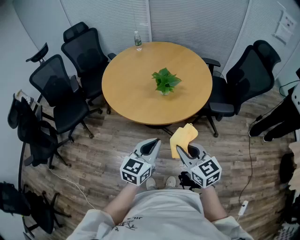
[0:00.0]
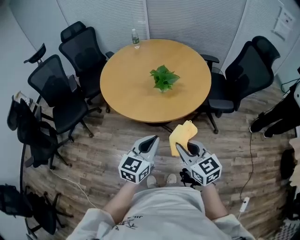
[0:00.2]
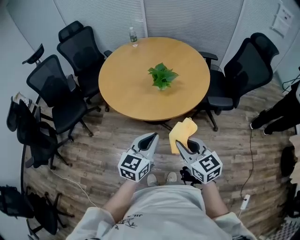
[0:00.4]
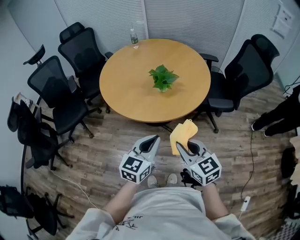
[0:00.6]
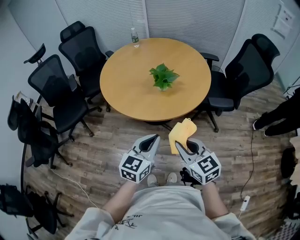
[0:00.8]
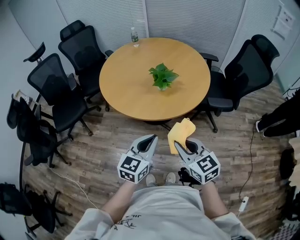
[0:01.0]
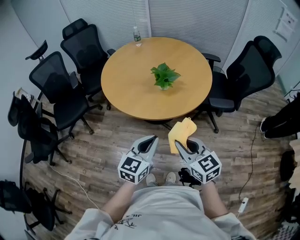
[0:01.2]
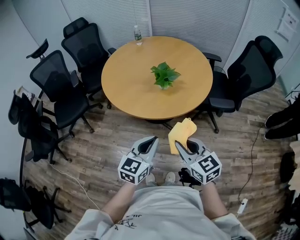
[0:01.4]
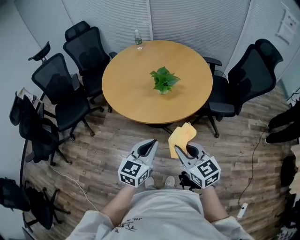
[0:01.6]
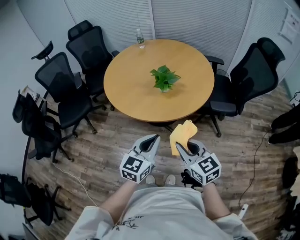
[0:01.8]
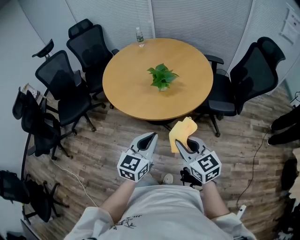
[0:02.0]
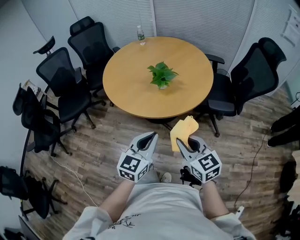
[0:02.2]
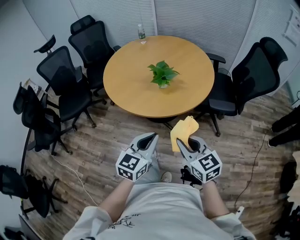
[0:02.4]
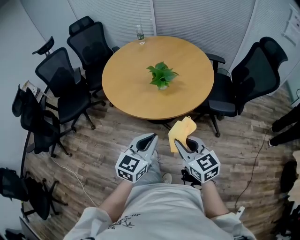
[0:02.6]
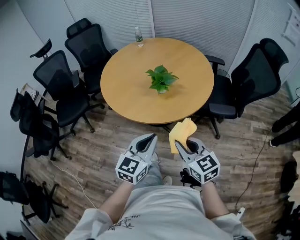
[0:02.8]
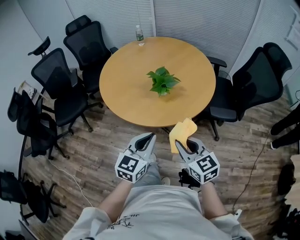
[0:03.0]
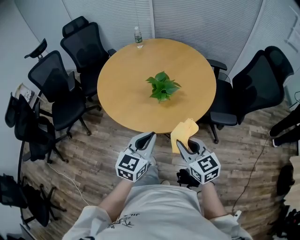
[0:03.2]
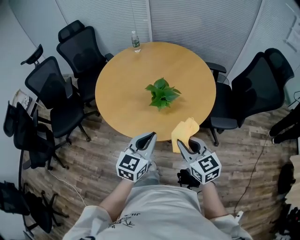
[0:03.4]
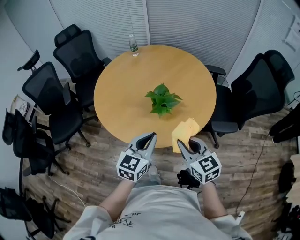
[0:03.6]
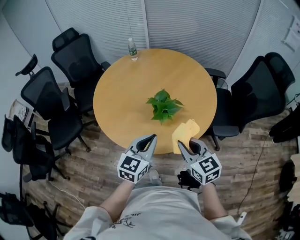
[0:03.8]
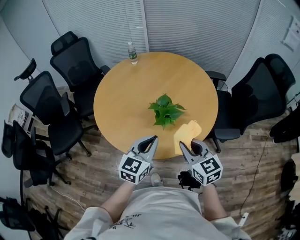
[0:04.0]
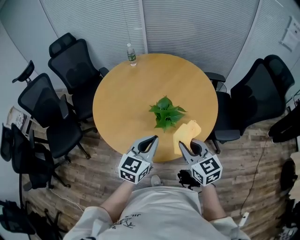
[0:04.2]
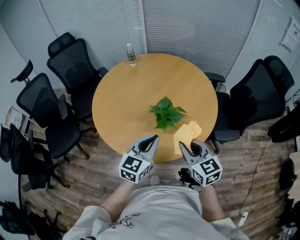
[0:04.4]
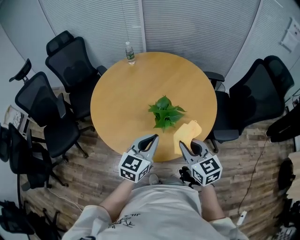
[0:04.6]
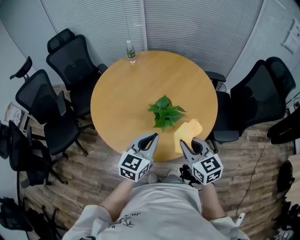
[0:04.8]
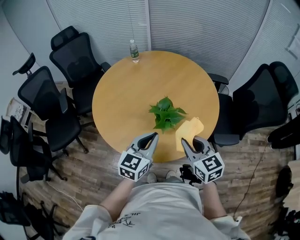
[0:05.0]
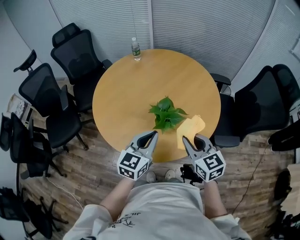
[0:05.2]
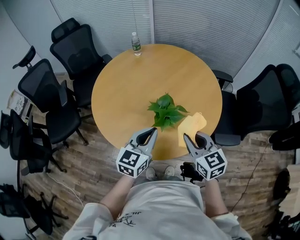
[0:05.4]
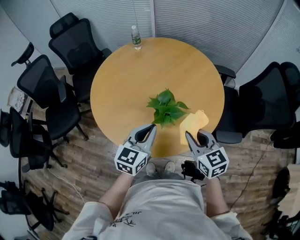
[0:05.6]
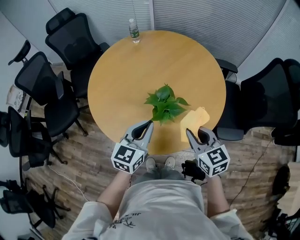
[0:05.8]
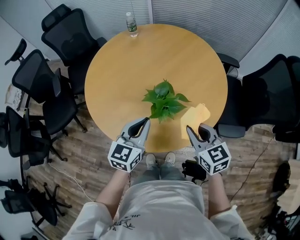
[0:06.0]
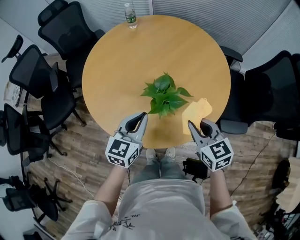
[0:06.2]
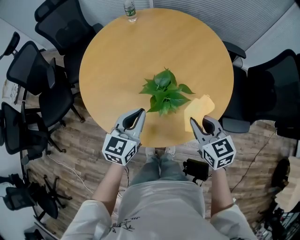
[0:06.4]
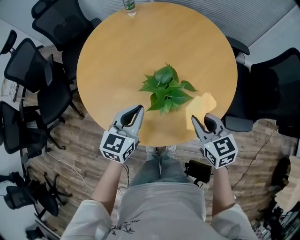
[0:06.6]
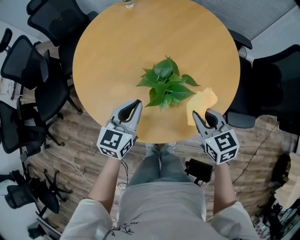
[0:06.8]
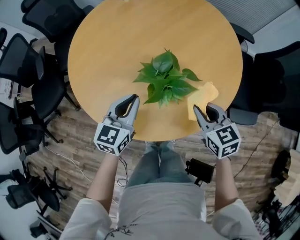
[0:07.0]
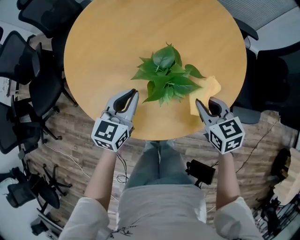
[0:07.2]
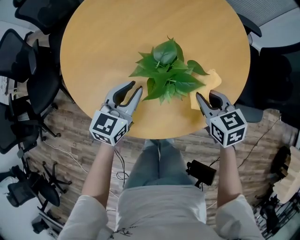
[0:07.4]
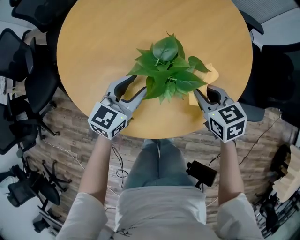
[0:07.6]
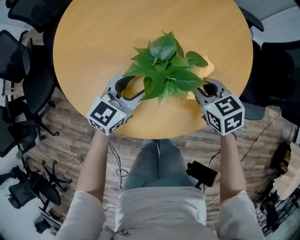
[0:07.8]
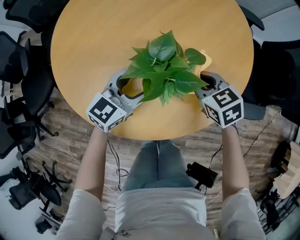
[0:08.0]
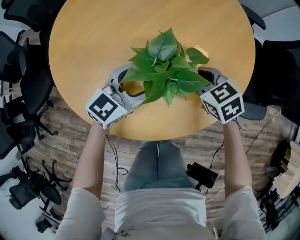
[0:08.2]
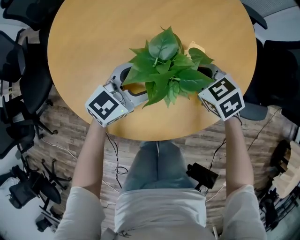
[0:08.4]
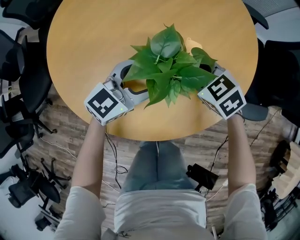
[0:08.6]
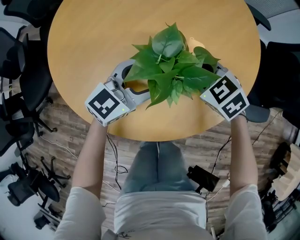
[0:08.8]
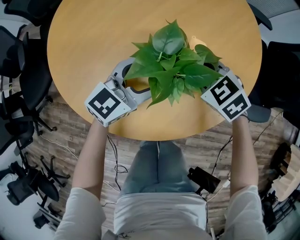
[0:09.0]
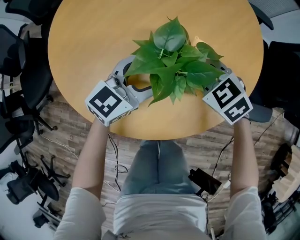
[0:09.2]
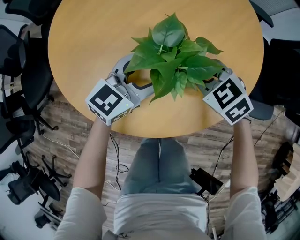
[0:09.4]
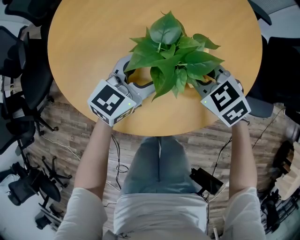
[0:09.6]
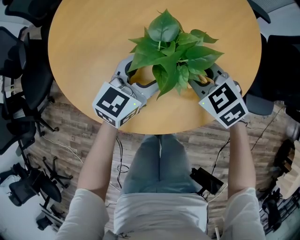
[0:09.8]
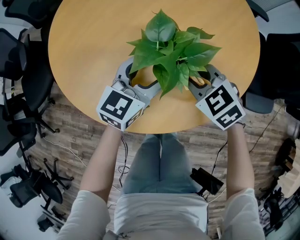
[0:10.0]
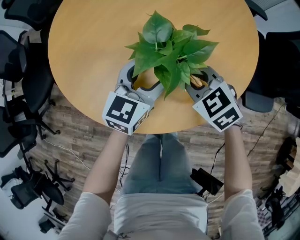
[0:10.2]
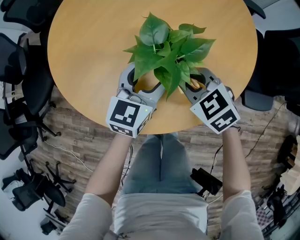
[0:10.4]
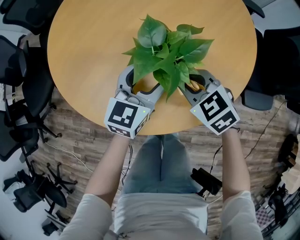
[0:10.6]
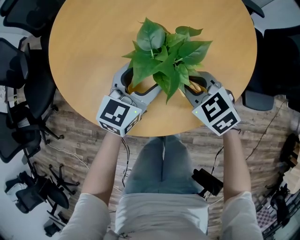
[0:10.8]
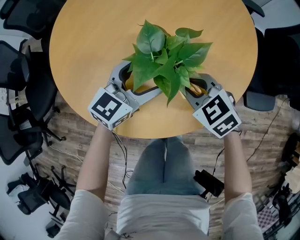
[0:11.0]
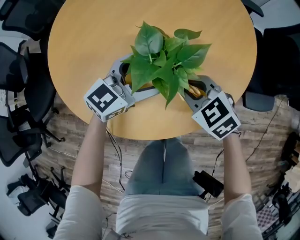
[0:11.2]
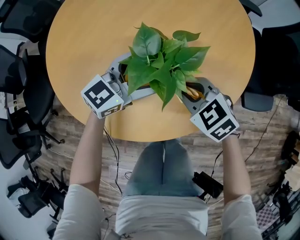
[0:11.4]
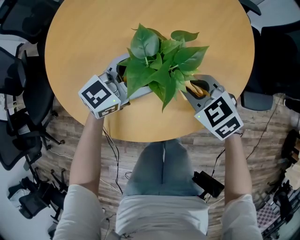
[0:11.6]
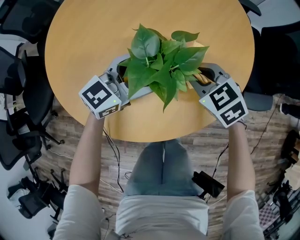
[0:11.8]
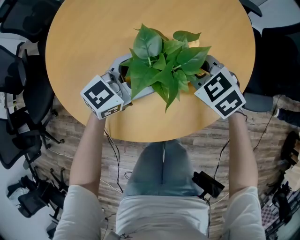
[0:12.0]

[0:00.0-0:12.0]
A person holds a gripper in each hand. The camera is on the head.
0:00.0 to 0:01.6: There are only small adjustments of the grippers.
0:01.6 to 0:03.0: The grippers both shift forward by roughly 5 cm.
0:03.0 to 0:04.4: The grippers both shift forward by about 20 cm.
0:04.4 to 0:06.0: The left gripper moves forward, roughly 5 cm; the right gripper moves forward and to the right, about 10 cm.
0:06.0 to 0:07.6: Both grippers move downward and forward, roughly 20 cm. The left gripper opens.
0:07.6 to 0:09.0: The right gripper shifts some 5 cm to the left, and rotates about 30 degrees. The left gripper ends up approximately 5 cm from where it was.
0:09.0 to 0:10.4: The right gripper goes approximately 5 cm backward, while the left gripper changes its angle by approximately 20 degrees.
0:10.4 to 0:12.0: The right gripper heads forward, covering some 5 cm. Meanwhile the left gripper changes its angle by roughly 30 degrees.

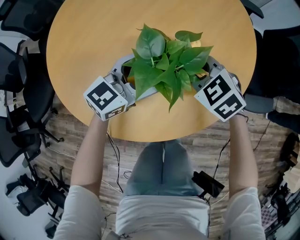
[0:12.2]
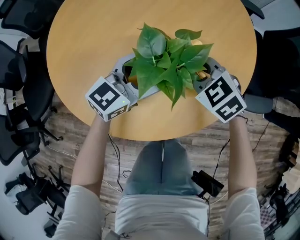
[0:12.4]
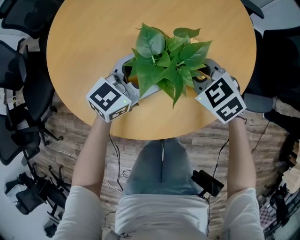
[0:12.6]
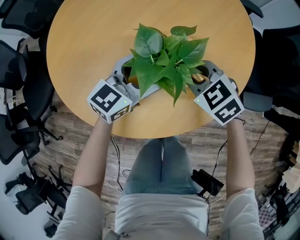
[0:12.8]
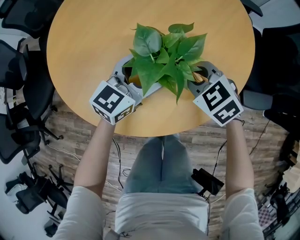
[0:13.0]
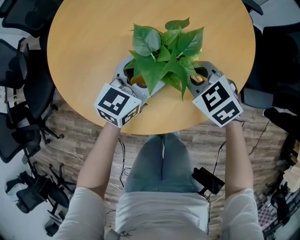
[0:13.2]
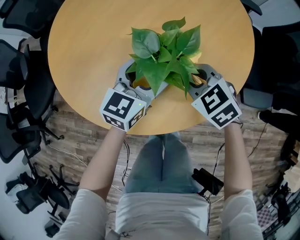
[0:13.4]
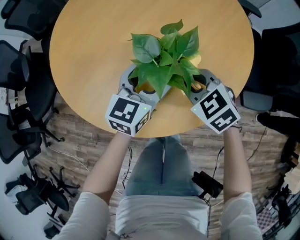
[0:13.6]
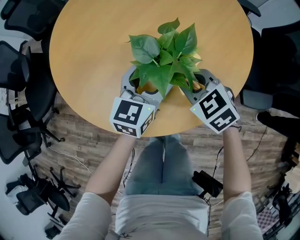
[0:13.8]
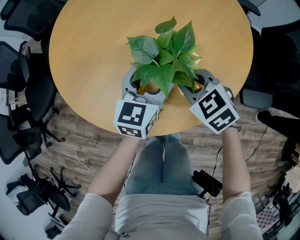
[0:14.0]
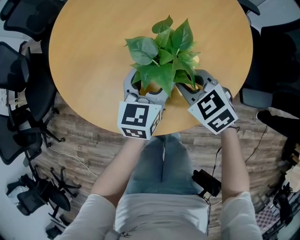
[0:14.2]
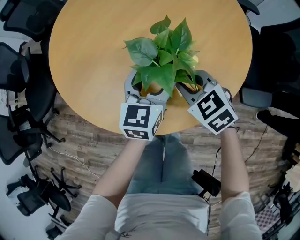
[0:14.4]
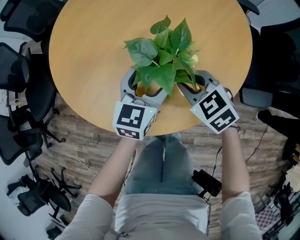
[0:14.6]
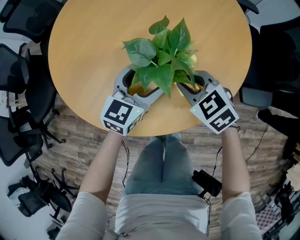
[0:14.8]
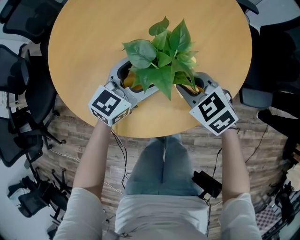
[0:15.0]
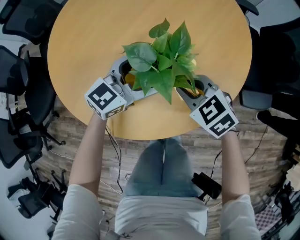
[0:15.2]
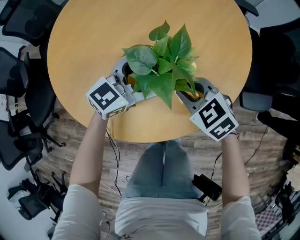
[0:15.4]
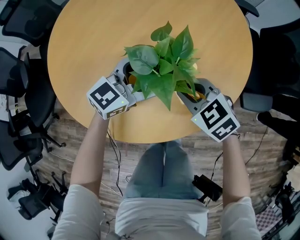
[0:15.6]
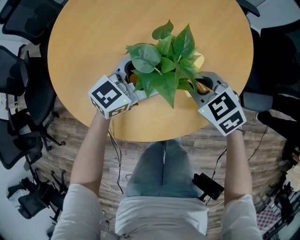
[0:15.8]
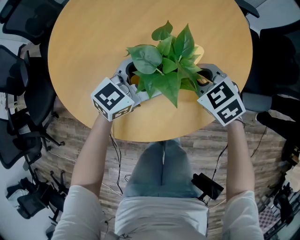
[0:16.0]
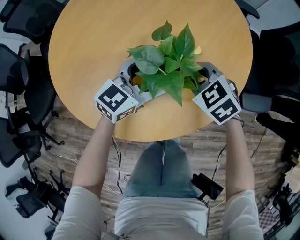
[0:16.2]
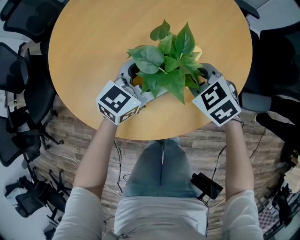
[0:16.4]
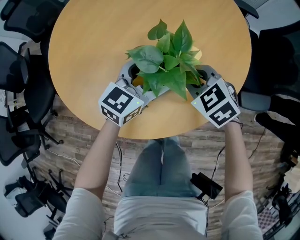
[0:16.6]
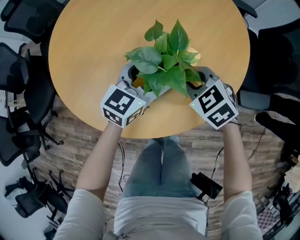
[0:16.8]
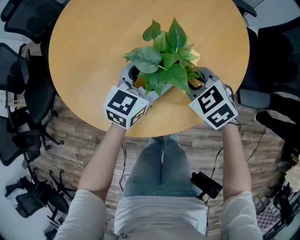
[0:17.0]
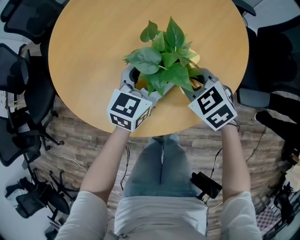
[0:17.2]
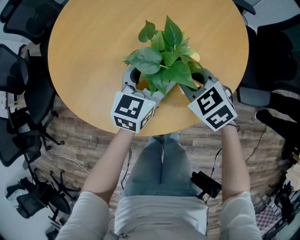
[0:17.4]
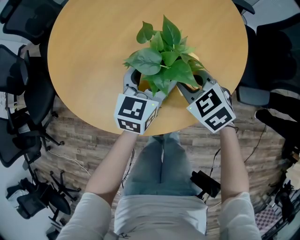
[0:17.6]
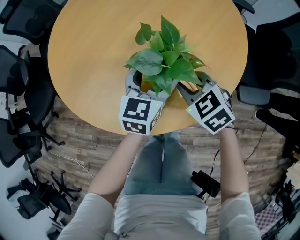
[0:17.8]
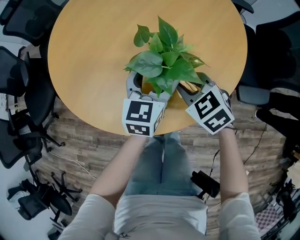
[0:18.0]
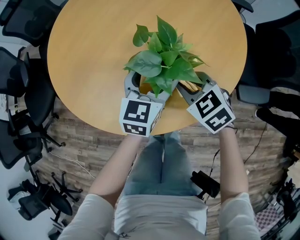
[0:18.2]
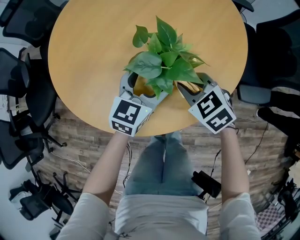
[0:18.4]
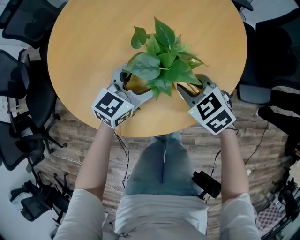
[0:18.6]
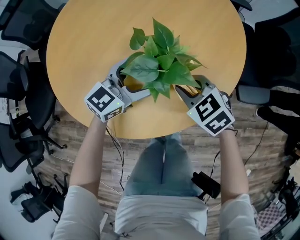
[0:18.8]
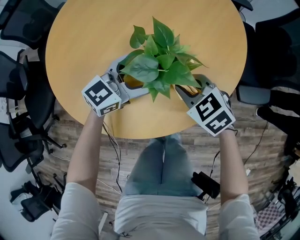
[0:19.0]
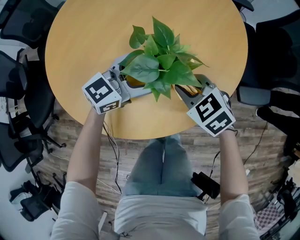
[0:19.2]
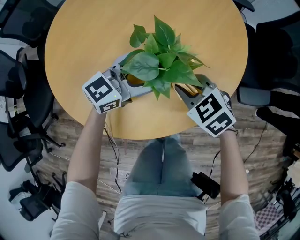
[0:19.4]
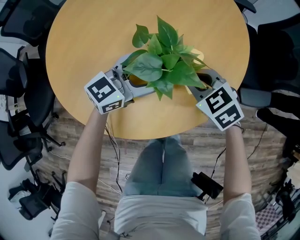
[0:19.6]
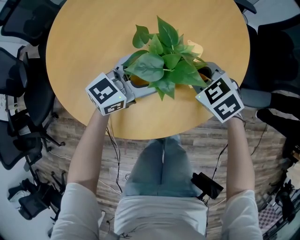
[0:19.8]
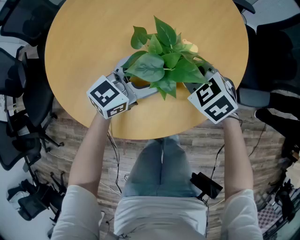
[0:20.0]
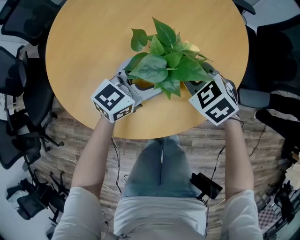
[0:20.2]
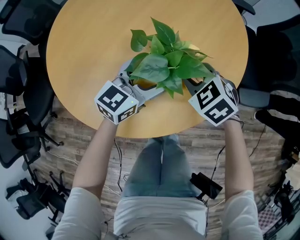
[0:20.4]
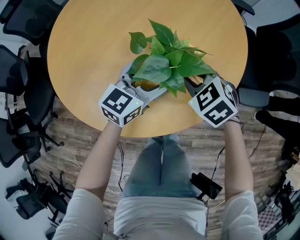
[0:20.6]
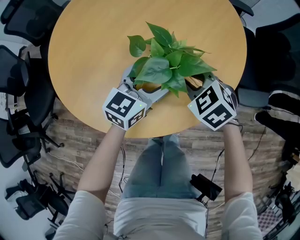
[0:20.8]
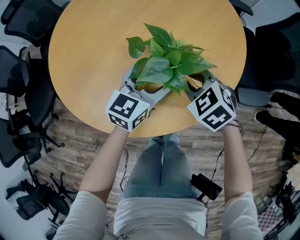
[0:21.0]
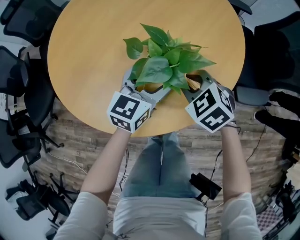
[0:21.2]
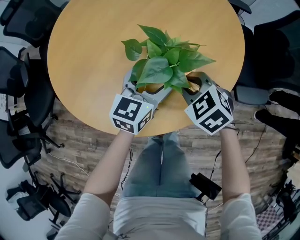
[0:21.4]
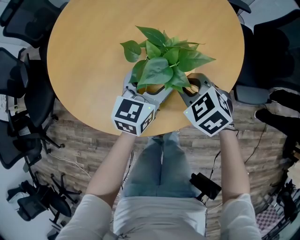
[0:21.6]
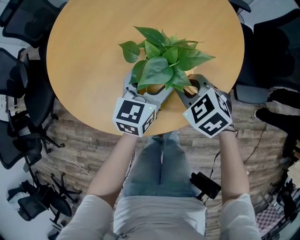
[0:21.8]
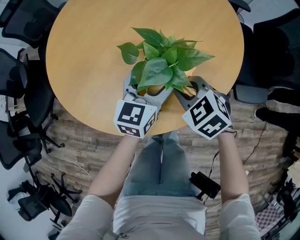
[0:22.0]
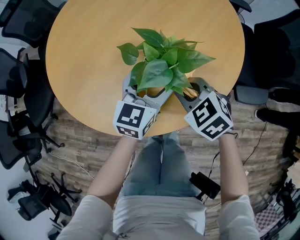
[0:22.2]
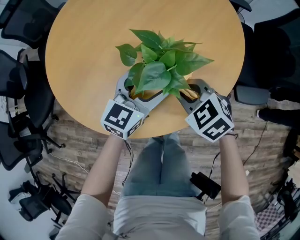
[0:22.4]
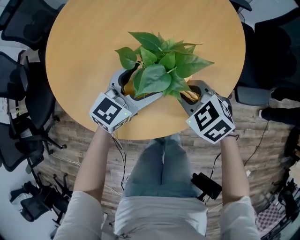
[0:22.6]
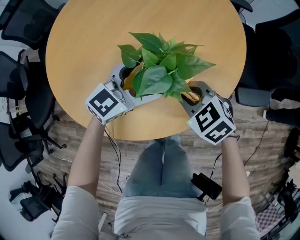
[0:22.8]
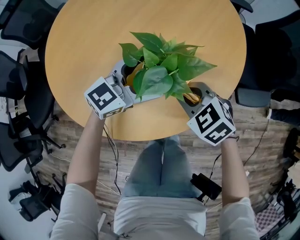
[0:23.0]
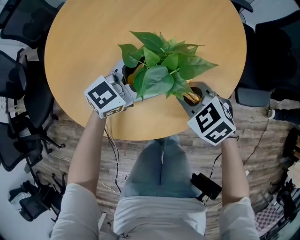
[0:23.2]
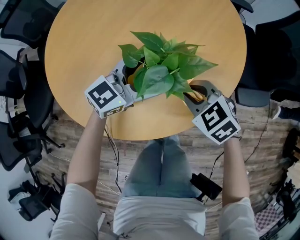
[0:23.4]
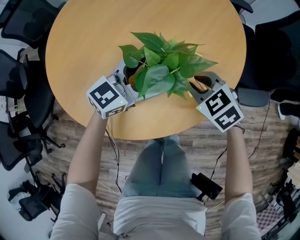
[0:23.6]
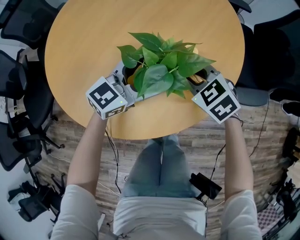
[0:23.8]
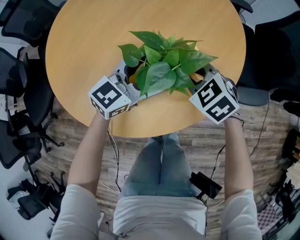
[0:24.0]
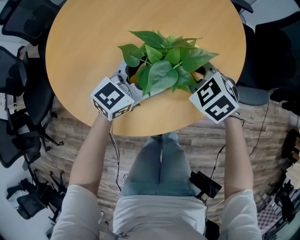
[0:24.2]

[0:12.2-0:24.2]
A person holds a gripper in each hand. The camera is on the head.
0:12.2 to 0:13.8: The right gripper heads backward, covering approximately 5 cm. Meanwhile the left gripper swivels about 30 degrees.
0:13.8 to 0:15.2: The left gripper changes its angle by roughly 30 degrees.
0:15.2 to 0:16.6: The grippers stay close to where they were, moving slightly.
0:16.6 to 0:18.2: The left gripper turns by approximately 20 degrees.
0:18.2 to 0:19.8: The left gripper turns by some 40 degrees; the right gripper moves roughly 5 cm.
0:19.8 to 0:21.2: The left gripper changes its angle by roughly 30 degrees.
0:21.2 to 0:22.6: The grippers move only a little.
0:22.6 to 0:24.2: The right gripper shifts roughly 5 cm forward.
